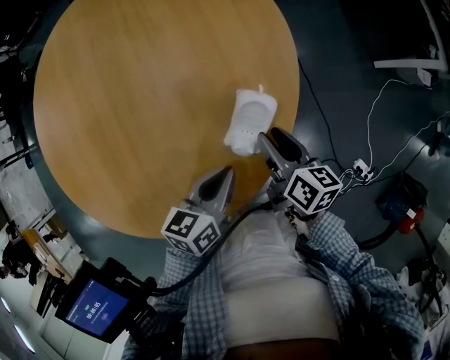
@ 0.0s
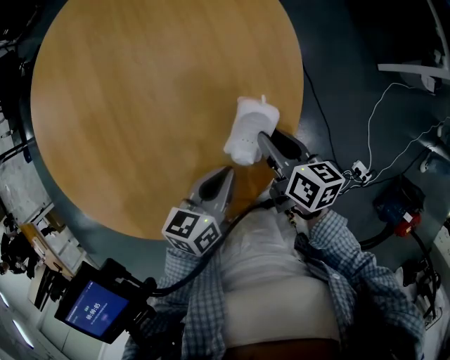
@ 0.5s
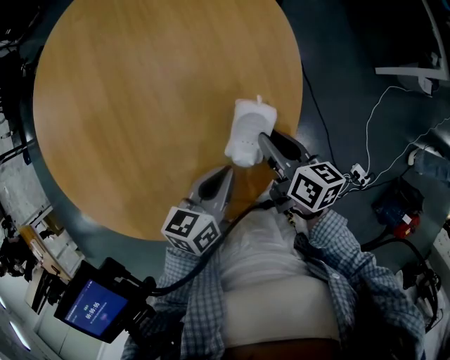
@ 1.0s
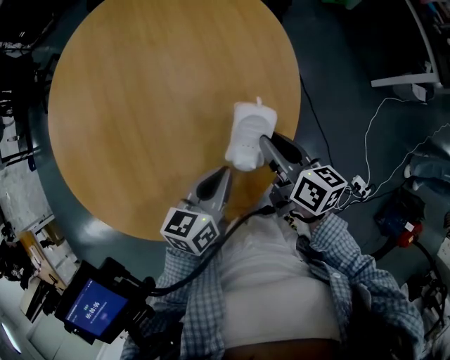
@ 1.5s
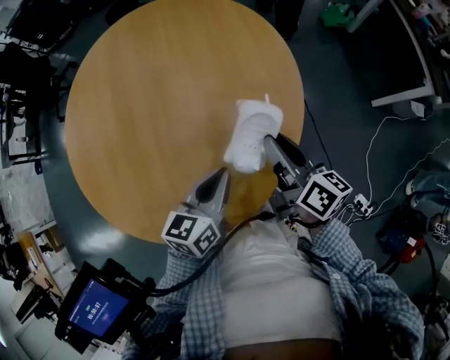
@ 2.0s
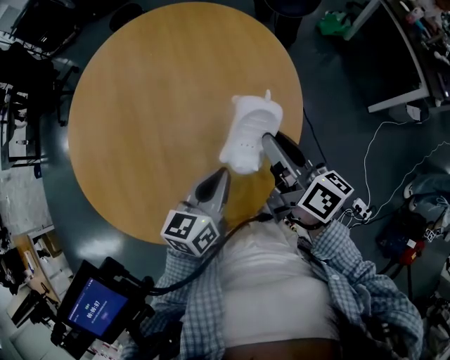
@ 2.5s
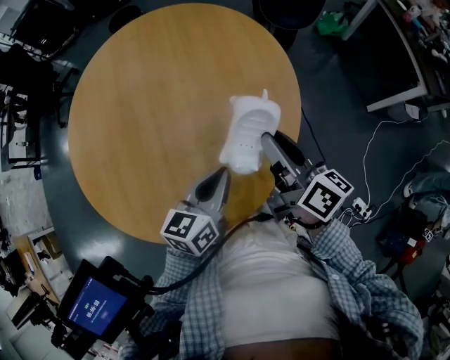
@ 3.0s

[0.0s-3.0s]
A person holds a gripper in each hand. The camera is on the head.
0.0s to 1.5s: The grippers make only small movements.
1.5s to 3.0s: The left gripper travels upward by roughly 5 cm. The right gripper heads upward, covering some 10 cm.

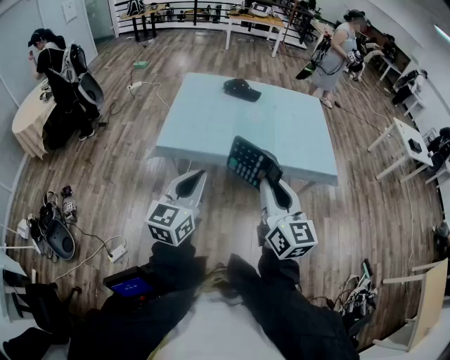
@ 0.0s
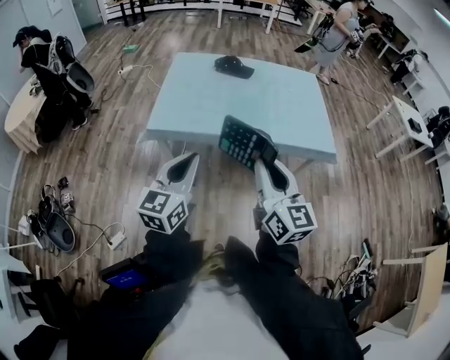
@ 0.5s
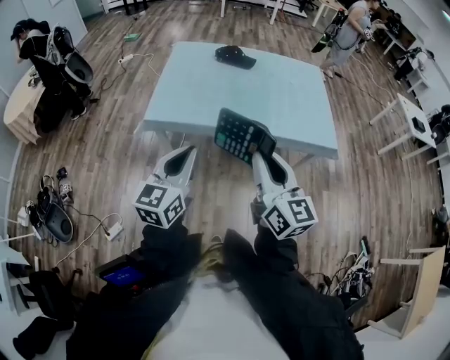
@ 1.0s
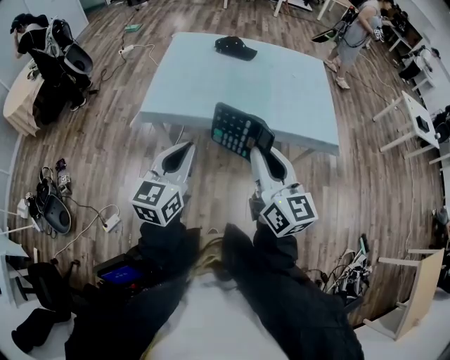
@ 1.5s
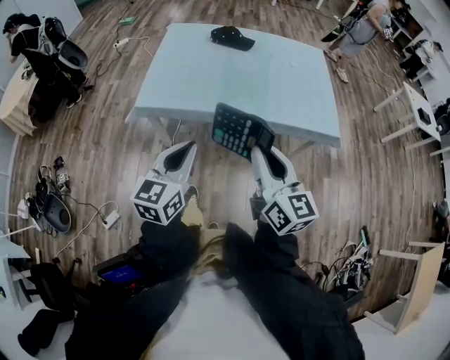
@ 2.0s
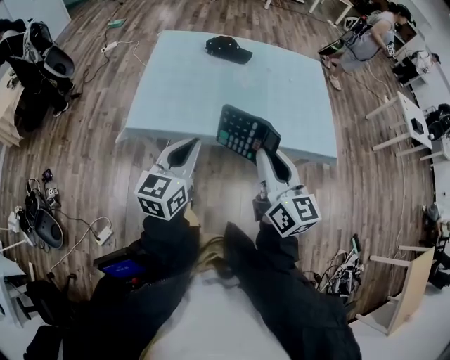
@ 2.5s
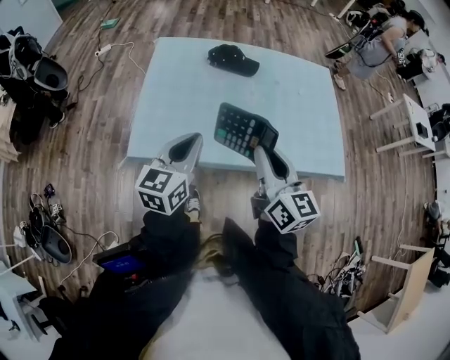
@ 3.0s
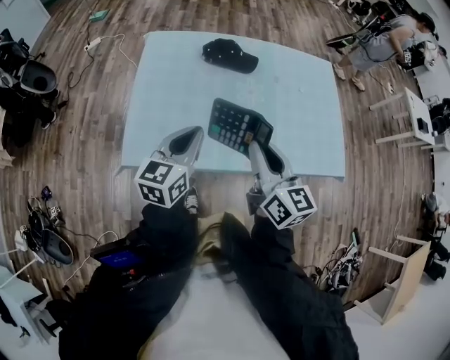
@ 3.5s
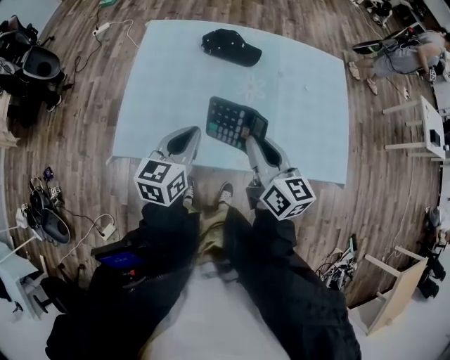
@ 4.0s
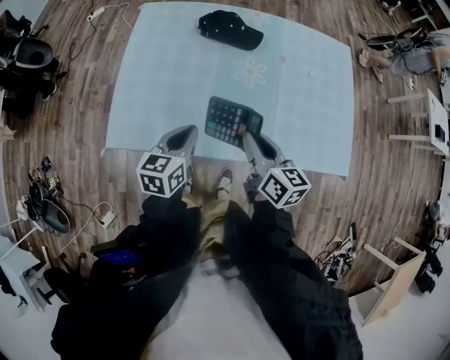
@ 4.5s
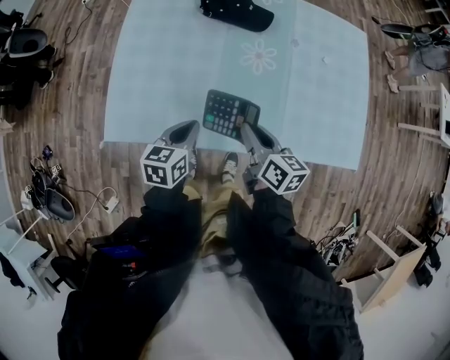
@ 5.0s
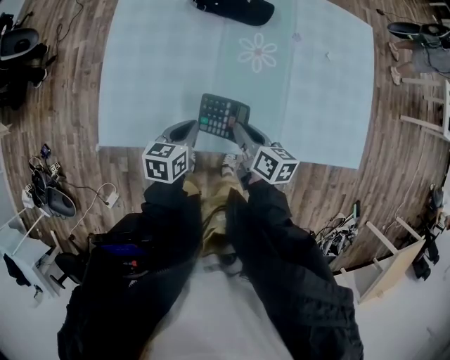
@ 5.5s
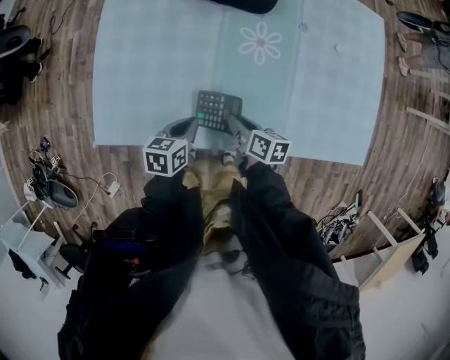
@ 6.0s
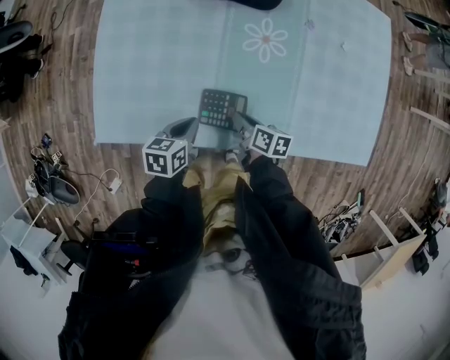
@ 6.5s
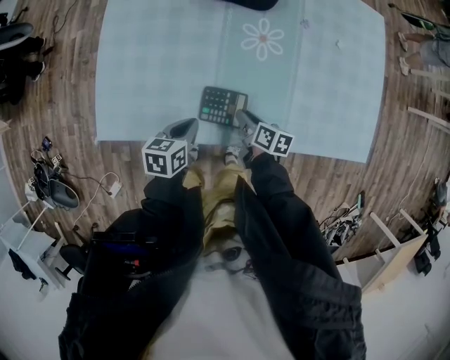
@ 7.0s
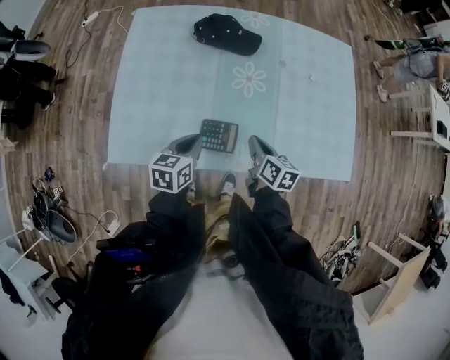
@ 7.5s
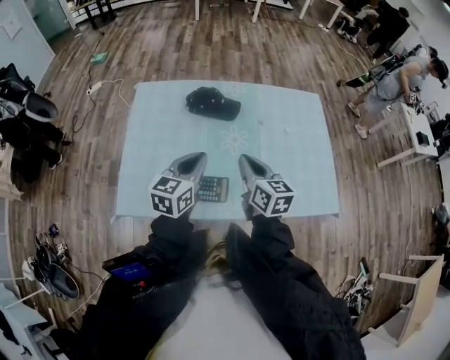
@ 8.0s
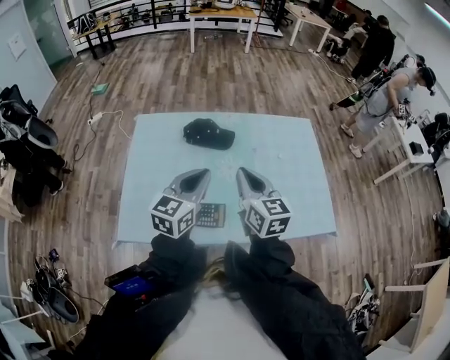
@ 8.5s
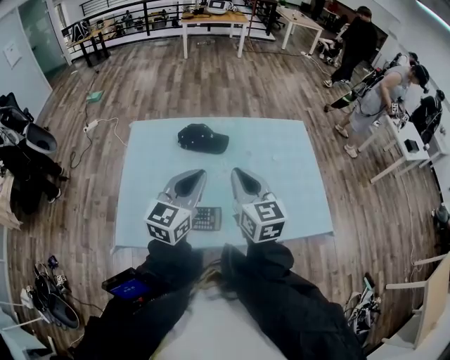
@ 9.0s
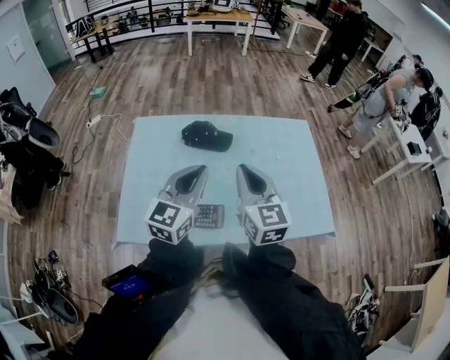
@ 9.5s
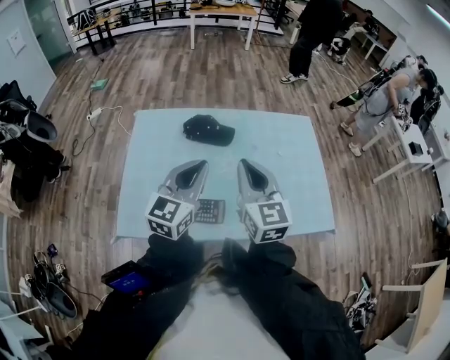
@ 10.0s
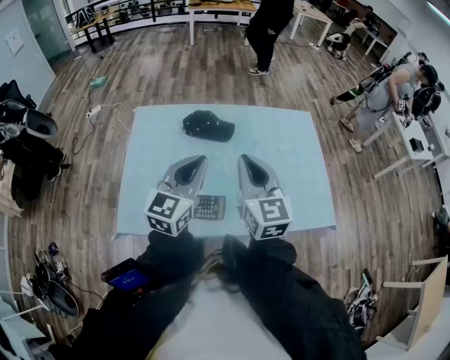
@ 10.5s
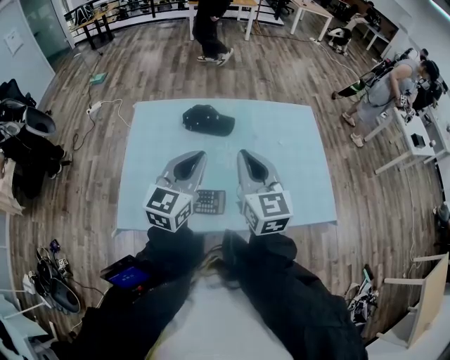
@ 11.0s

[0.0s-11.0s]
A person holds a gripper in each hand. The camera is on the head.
0.0s to 2.0s: The right gripper moves forward, roughly 5 cm; the left gripper shifts roughly 5 cm downward.
2.0s to 3.5s: Both grippers travel together forward, approximately 35 cm.
3.5s to 5.5s: The two grippers go approximately 25 cm downward. The left gripper turns by about 30 degrees. The right gripper changes its angle by about 40 degrees.
5.5s to 7.5s: The right gripper moves to the right, about 5 cm, and goes downward and returns, roughly 15 cm each way.
7.5s to 9.0s: The grippers both shift upward by about 30 cm. The left gripper angles its fingers upward, by some 30 degrees; the right gripper turns by approximately 40 degrees.
9.0s to 11.0s: There are only small adjustments of the grippers.

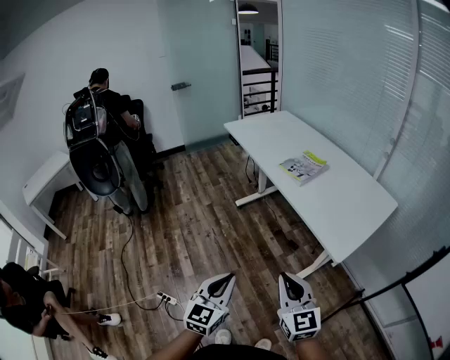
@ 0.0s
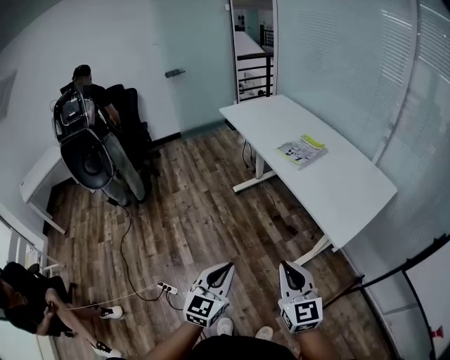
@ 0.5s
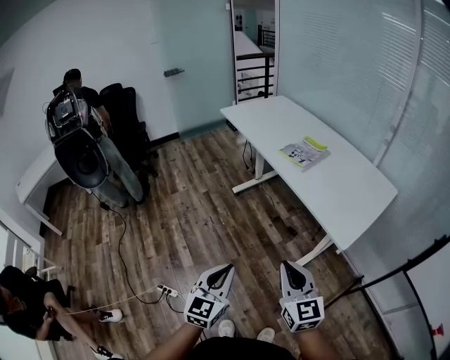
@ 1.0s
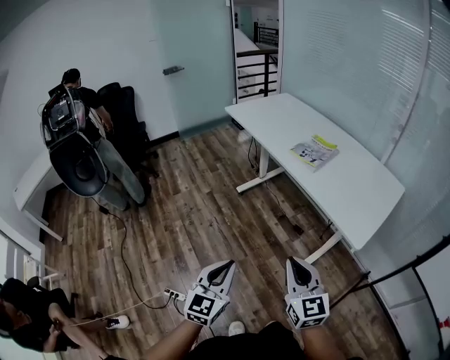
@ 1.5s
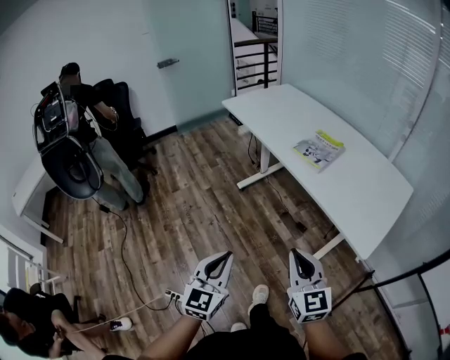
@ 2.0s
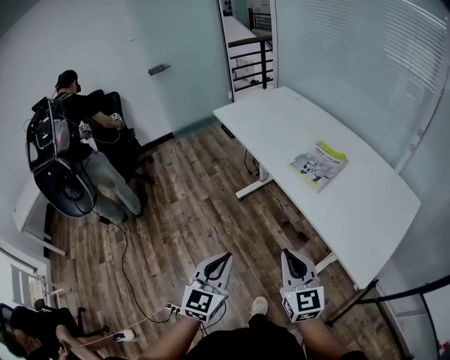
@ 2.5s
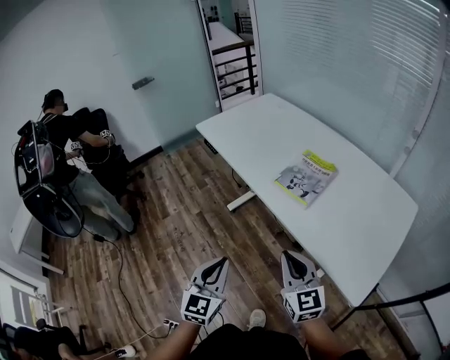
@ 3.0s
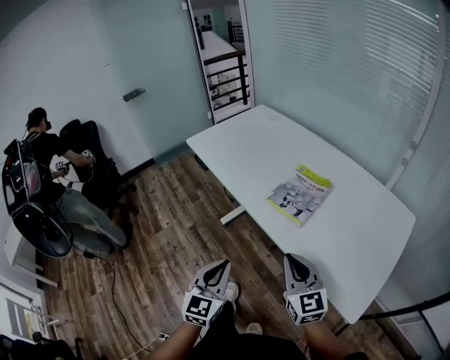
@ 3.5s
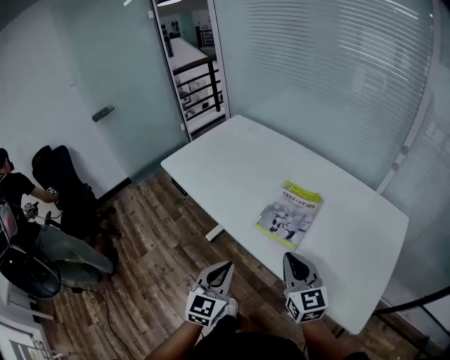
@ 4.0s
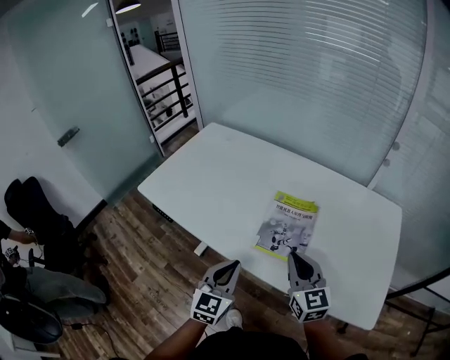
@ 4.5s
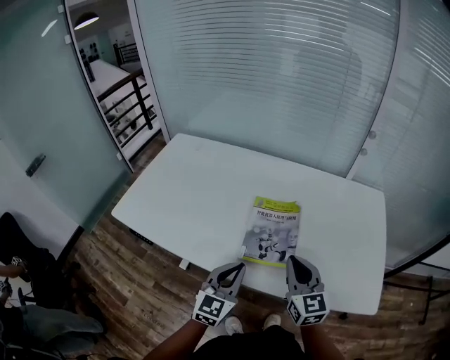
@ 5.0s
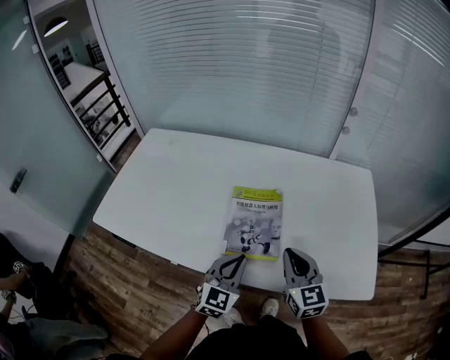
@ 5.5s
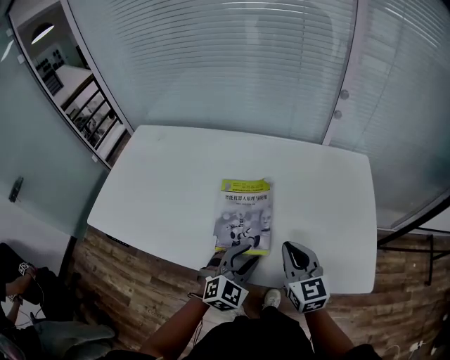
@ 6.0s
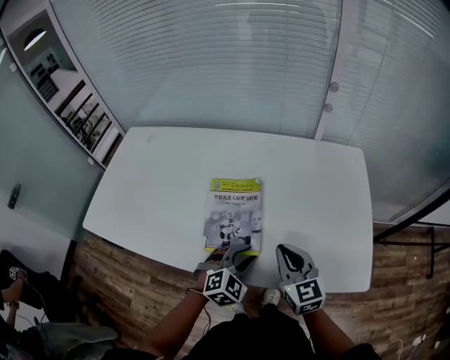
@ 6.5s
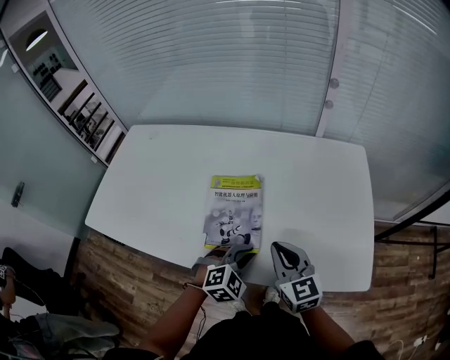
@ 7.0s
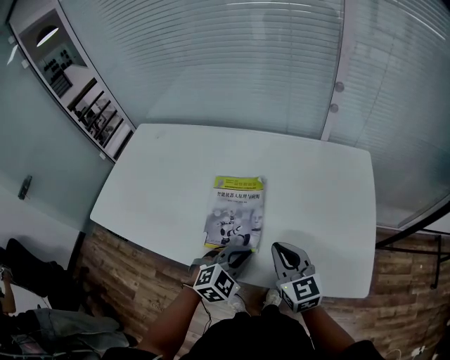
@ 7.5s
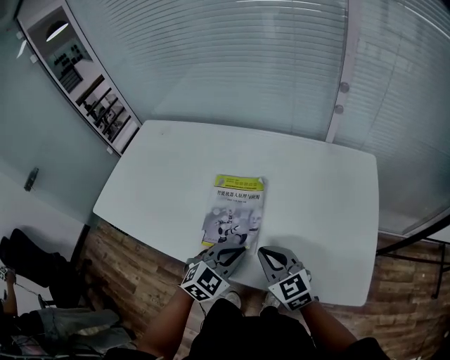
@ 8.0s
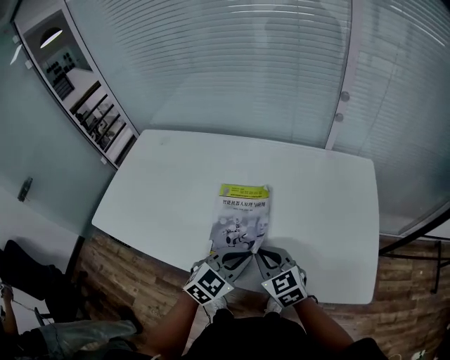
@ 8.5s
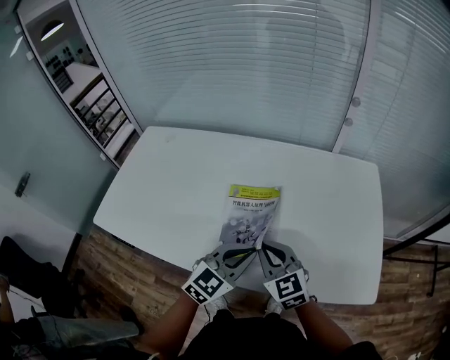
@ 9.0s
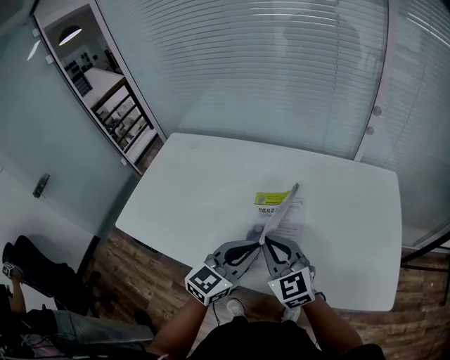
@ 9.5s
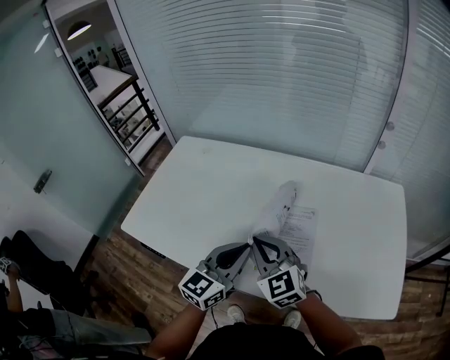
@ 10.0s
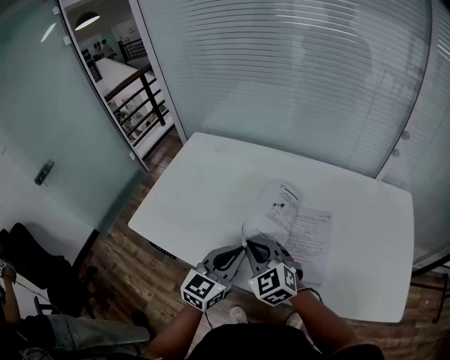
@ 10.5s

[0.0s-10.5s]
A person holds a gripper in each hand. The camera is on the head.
0.0s to 2.0s: Both grippers move forward and to the left, about 15 cm.
2.0s to 4.0s: The two grippers go some 35 cm forward.
4.0s to 6.5s: The right gripper moves some 10 cm, and turns by some 30 degrees. Meanwhile the left gripper changes place by about 25 cm, swivels some 70 degrees, and opens.
6.5s to 8.5s: The right gripper travels to the left by about 10 cm, and swivels about 20 degrees. The left gripper goes about 5 cm upward, changes its angle by about 20 degrees, and closes.
8.5s to 10.5s: The grippers both shift to the left by about 25 cm. The right gripper changes its angle by some 20 degrees. The left gripper rotates approximately 30 degrees.

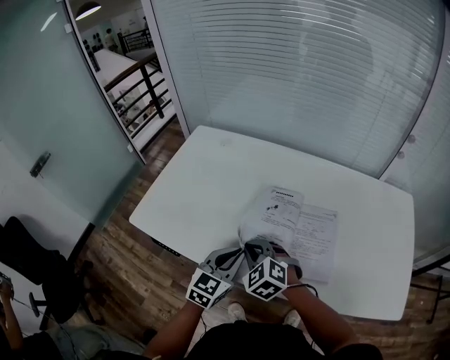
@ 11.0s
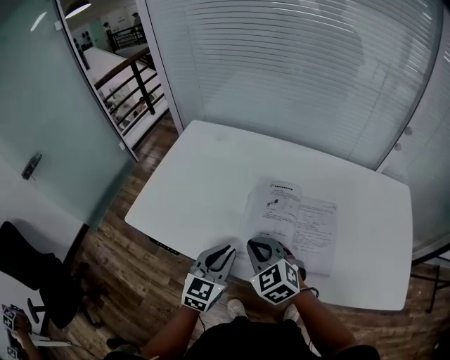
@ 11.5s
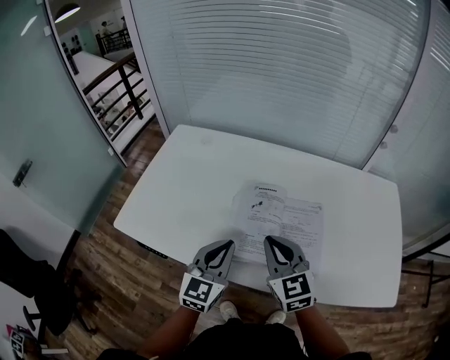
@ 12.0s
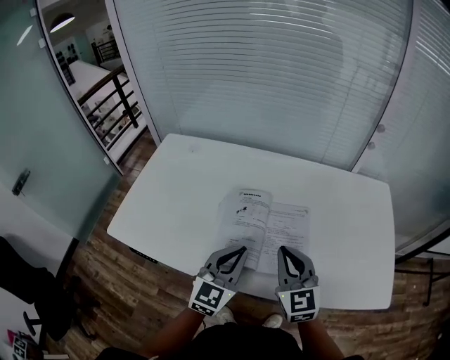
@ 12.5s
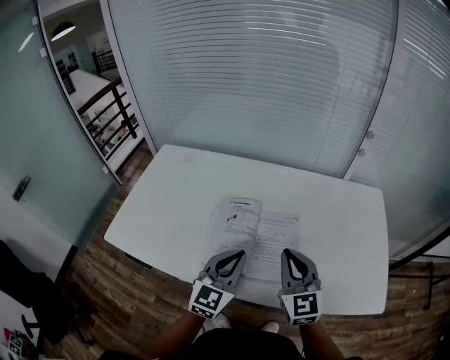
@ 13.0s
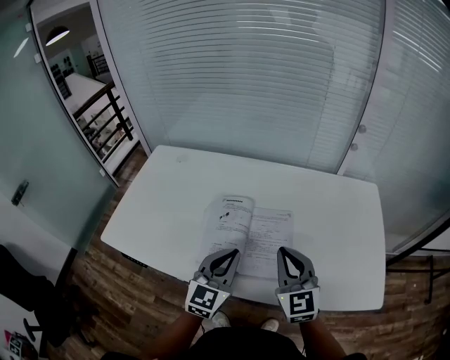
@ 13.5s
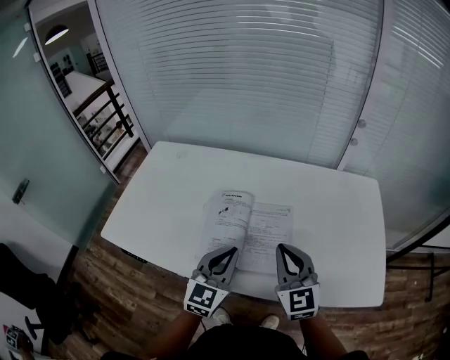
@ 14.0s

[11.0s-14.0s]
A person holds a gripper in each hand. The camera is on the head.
11.0s to 12.5s: The right gripper moves to the right and upward, approximately 20 cm, and tips its fingers upward by about 30 degrees. The left gripper shifts some 10 cm to the right and upward.
12.5s to 14.0s: The right gripper travels to the right by about 5 cm.
